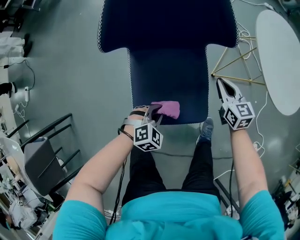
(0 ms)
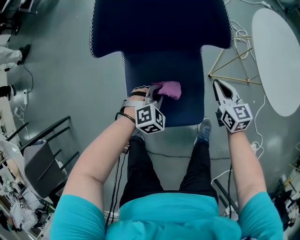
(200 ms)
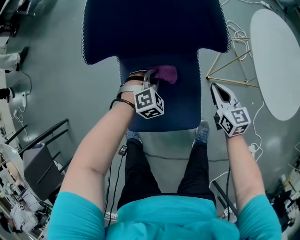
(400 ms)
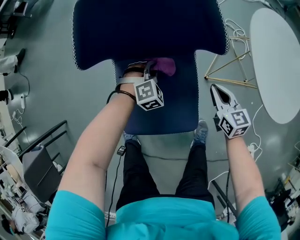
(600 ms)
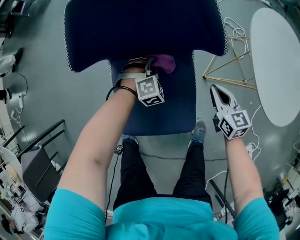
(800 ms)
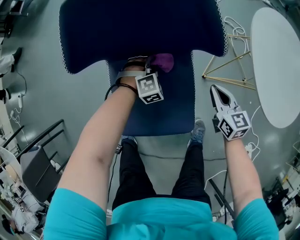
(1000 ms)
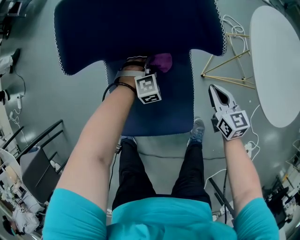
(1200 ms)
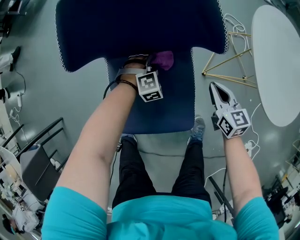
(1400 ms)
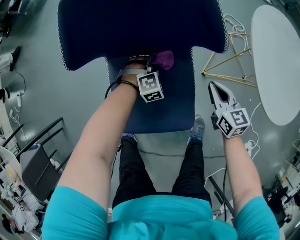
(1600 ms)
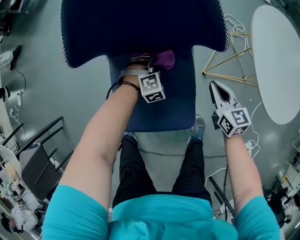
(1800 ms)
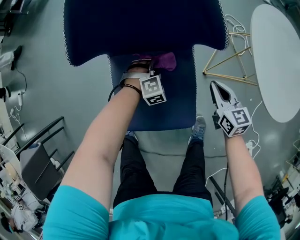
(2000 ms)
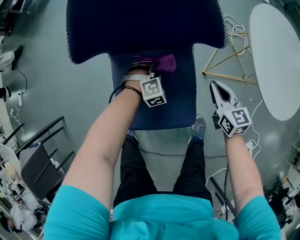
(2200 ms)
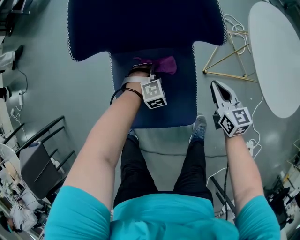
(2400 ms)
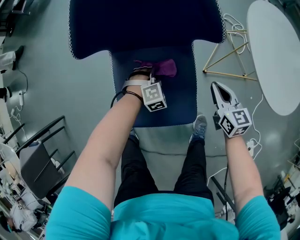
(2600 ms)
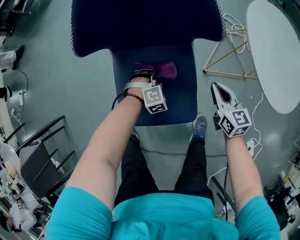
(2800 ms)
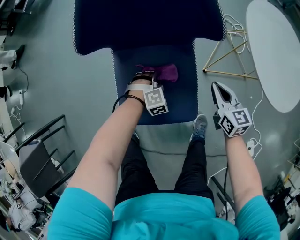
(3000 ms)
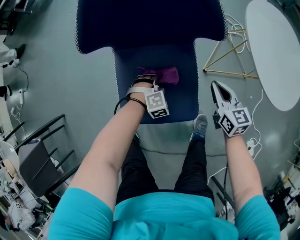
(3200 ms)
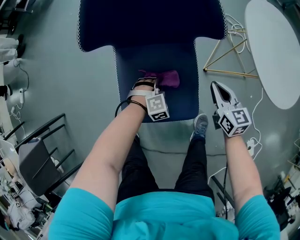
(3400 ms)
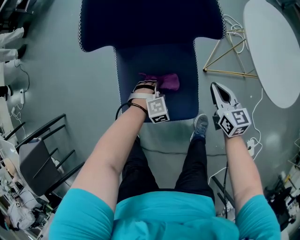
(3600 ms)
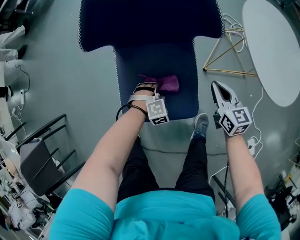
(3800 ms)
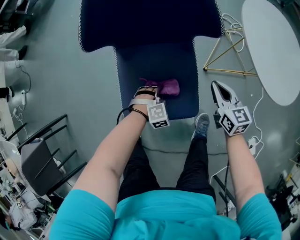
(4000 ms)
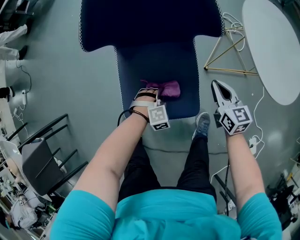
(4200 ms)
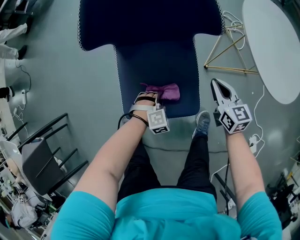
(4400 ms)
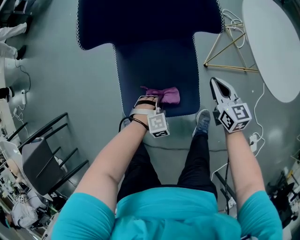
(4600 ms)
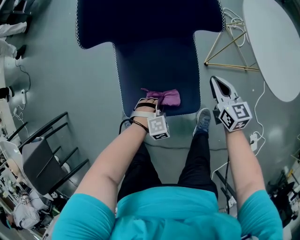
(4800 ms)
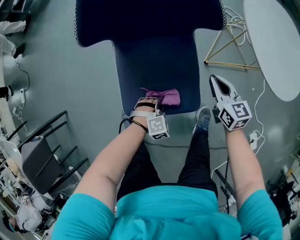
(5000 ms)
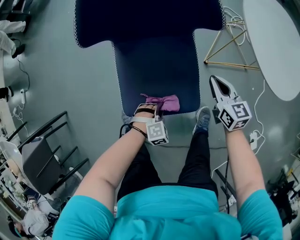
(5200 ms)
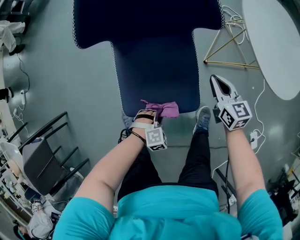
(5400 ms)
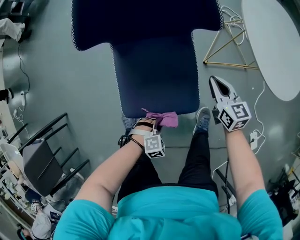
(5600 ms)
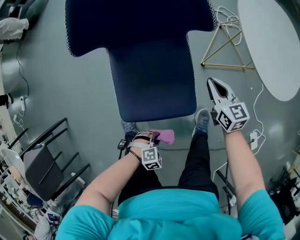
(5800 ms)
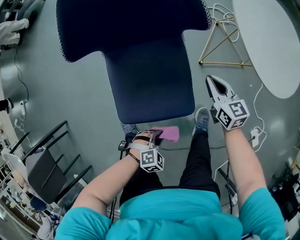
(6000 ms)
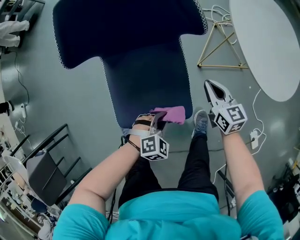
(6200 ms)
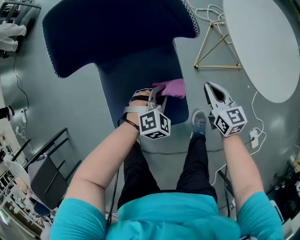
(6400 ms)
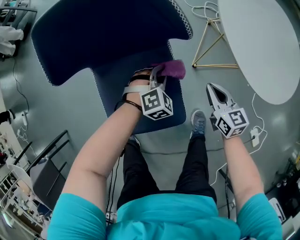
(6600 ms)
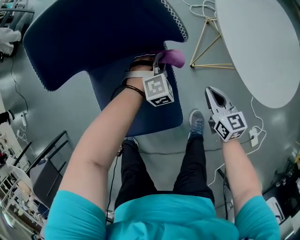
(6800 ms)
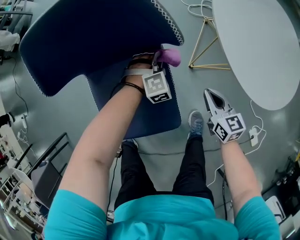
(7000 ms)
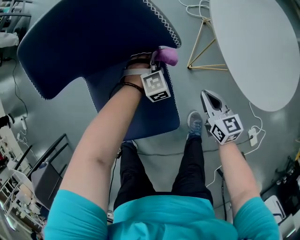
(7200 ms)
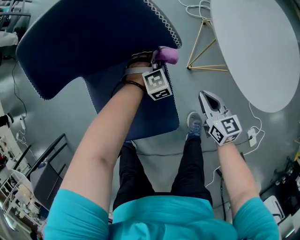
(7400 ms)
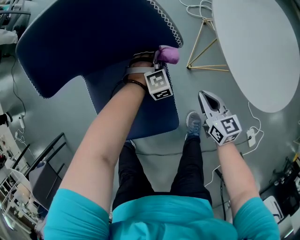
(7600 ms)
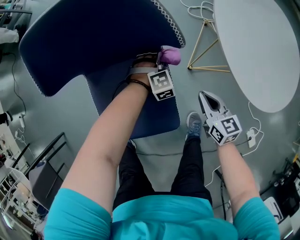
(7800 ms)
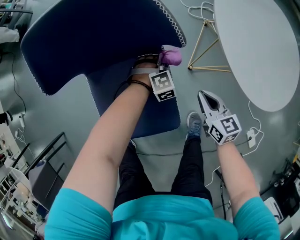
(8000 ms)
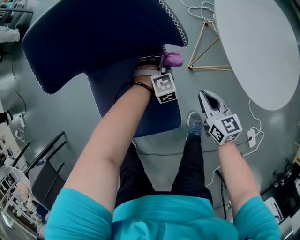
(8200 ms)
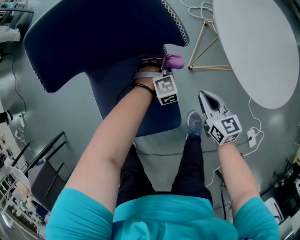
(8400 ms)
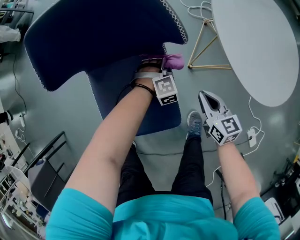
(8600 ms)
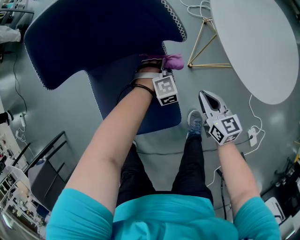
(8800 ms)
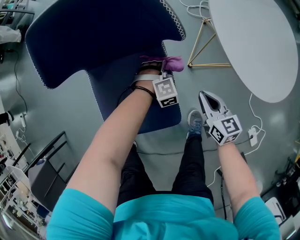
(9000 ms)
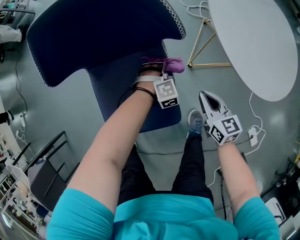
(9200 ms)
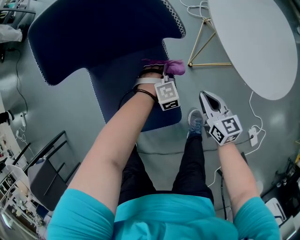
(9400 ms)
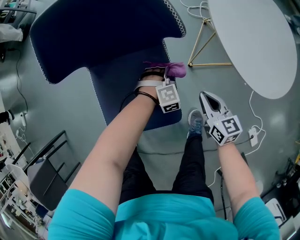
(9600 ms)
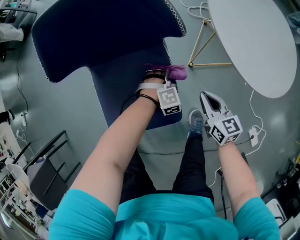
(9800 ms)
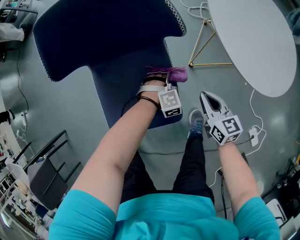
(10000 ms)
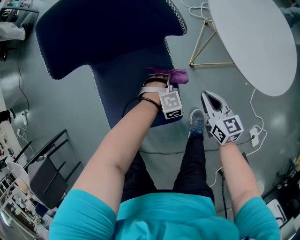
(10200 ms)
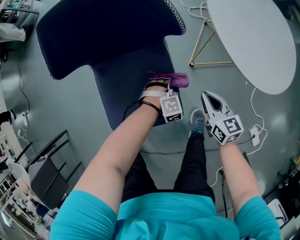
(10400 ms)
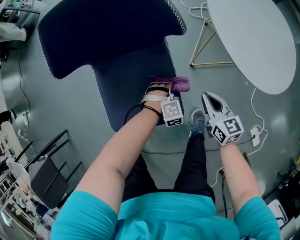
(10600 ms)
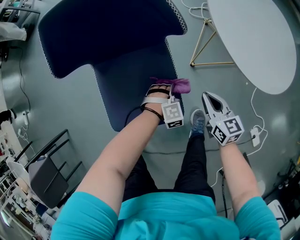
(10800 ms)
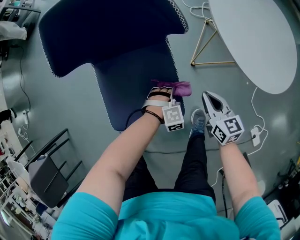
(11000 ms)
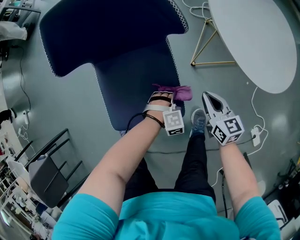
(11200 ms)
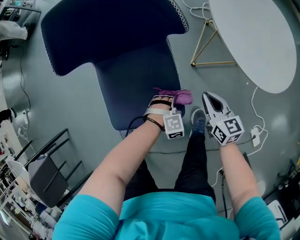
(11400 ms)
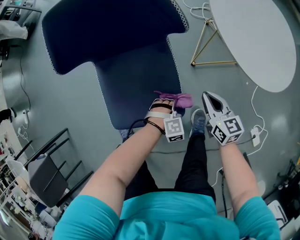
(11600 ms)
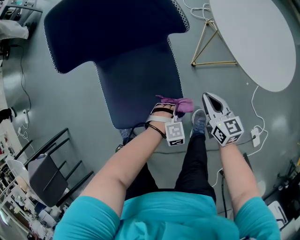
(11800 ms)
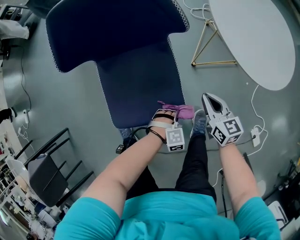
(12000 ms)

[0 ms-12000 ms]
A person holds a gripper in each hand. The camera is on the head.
0 ms to 1600 ms: The left gripper heads forward, covering about 25 cm, and changes its angle by roughly 20 degrees.
1600 ms to 3000 ms: The right gripper changes place by about 5 cm. Meanwhile the left gripper moves backward, some 10 cm.
3000 ms to 4400 ms: The left gripper heads backward, covering some 10 cm.
4400 ms to 6000 ms: The left gripper changes place by approximately 15 cm, and rotates approximately 20 degrees.
6000 ms to 7600 ms: The left gripper changes place by roughly 40 cm, and swivels about 30 degrees. The right gripper ends up some 5 cm from where it was.
7600 ms to 9000 ms: The left gripper shifts approximately 5 cm backward.
9000 ms to 10400 ms: The left gripper travels backward by approximately 10 cm.
10400 ms to 12000 ms: The left gripper moves backward, roughly 15 cm.

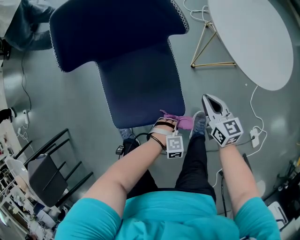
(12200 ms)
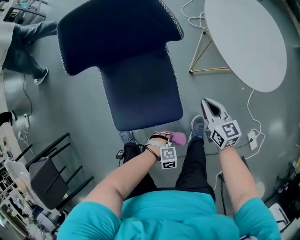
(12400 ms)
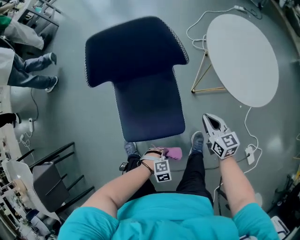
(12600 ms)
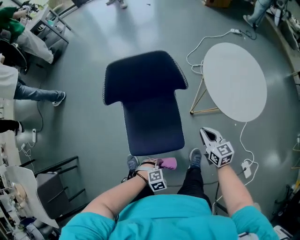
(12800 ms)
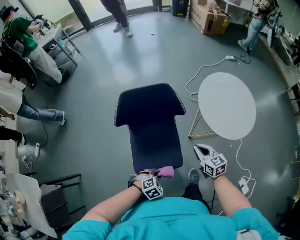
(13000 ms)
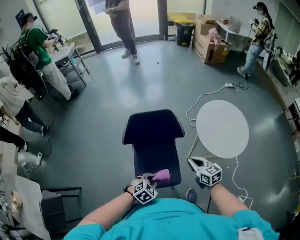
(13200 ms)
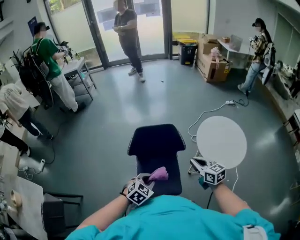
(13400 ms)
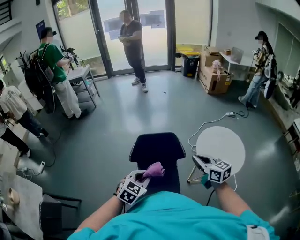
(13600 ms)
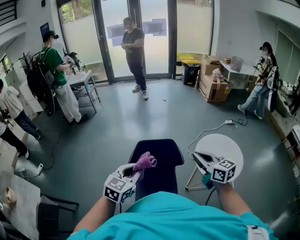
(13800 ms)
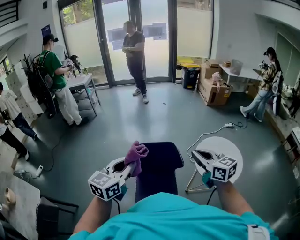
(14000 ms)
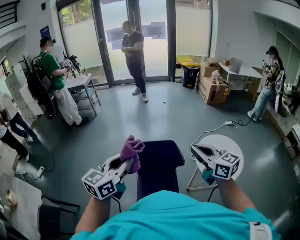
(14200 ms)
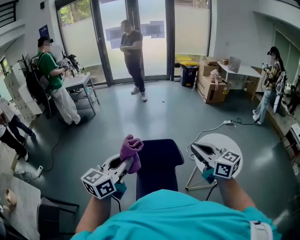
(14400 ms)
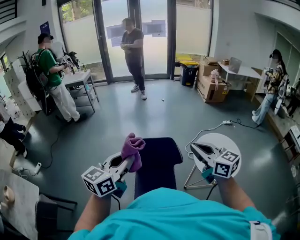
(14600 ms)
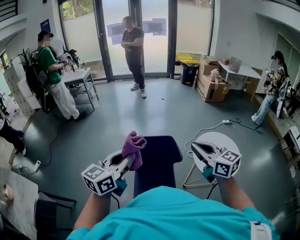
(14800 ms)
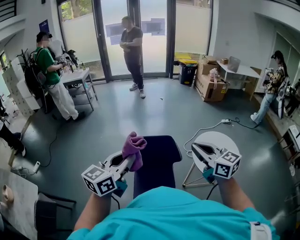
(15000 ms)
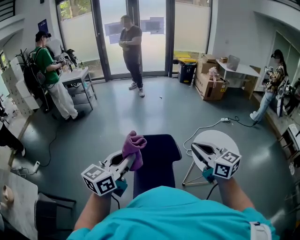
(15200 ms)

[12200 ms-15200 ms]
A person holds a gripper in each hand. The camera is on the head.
12200 ms to 13800 ms: The grippers both shift upward by approximately 60 cm. The left gripper tips its fingers upward by roughly 50 degrees. The right gripper rotates approximately 30 degrees.
13800 ms to 15200 ms: The two grippers go about 10 cm upward. The left gripper changes its angle by roughly 30 degrees.

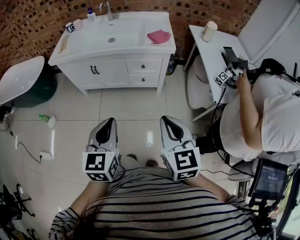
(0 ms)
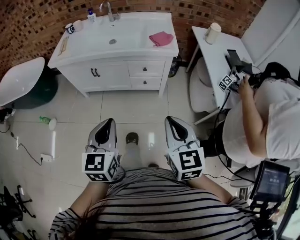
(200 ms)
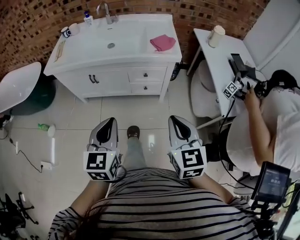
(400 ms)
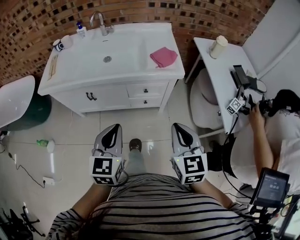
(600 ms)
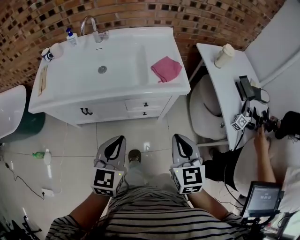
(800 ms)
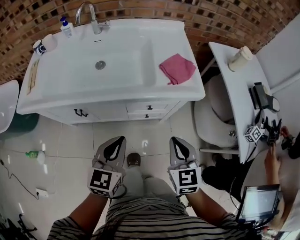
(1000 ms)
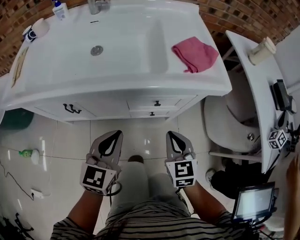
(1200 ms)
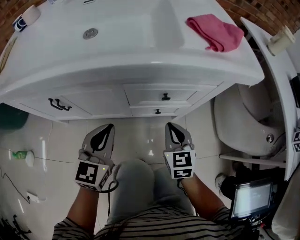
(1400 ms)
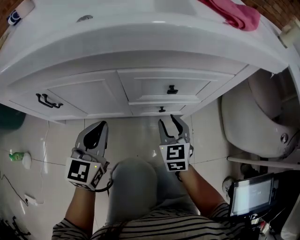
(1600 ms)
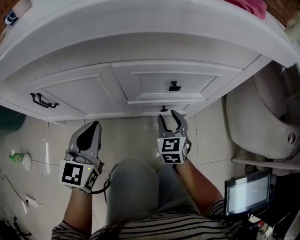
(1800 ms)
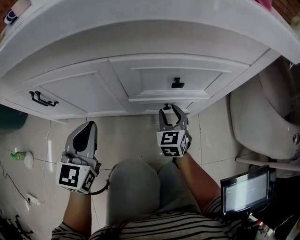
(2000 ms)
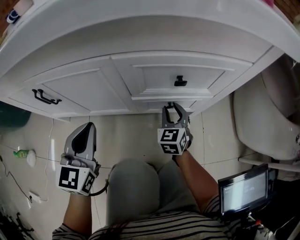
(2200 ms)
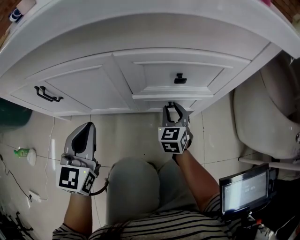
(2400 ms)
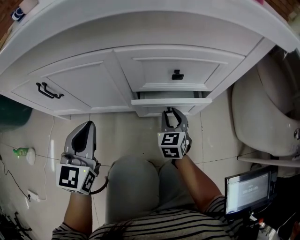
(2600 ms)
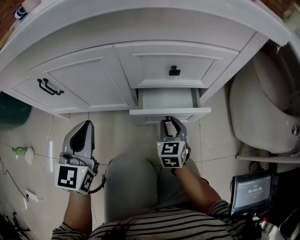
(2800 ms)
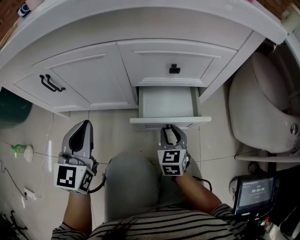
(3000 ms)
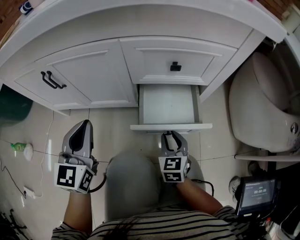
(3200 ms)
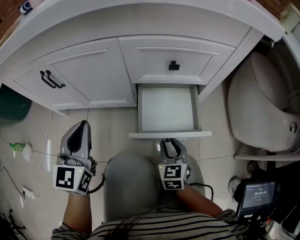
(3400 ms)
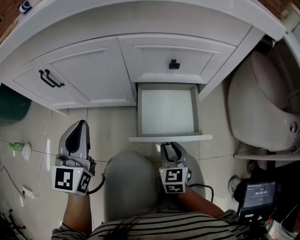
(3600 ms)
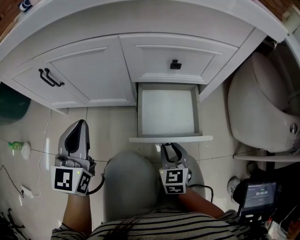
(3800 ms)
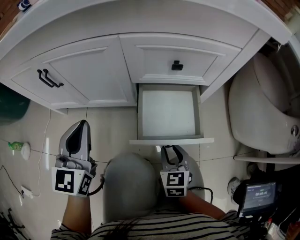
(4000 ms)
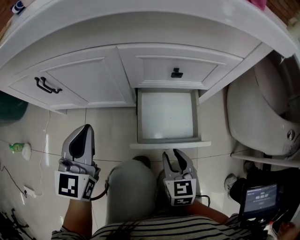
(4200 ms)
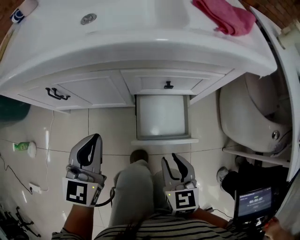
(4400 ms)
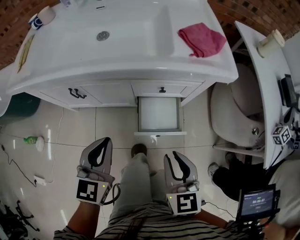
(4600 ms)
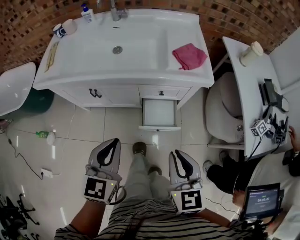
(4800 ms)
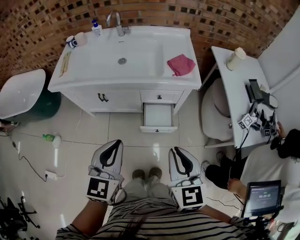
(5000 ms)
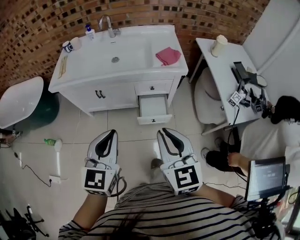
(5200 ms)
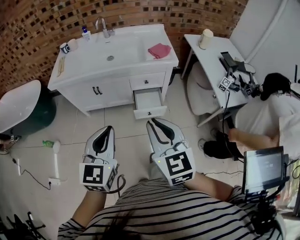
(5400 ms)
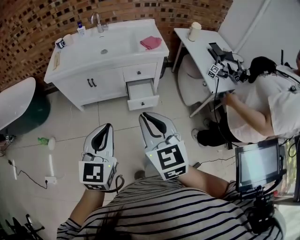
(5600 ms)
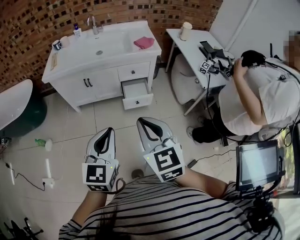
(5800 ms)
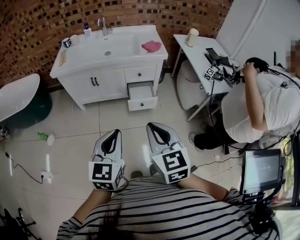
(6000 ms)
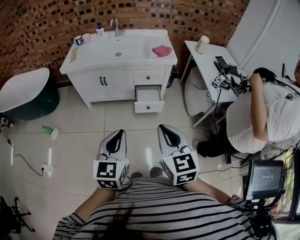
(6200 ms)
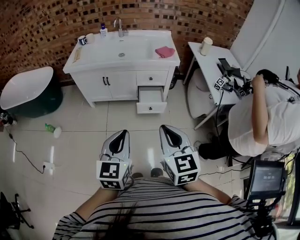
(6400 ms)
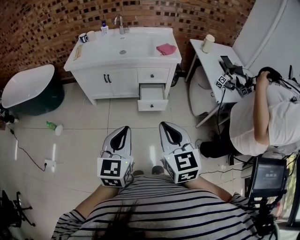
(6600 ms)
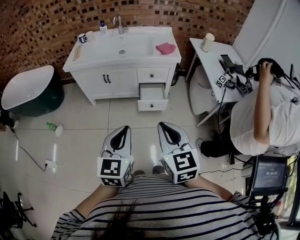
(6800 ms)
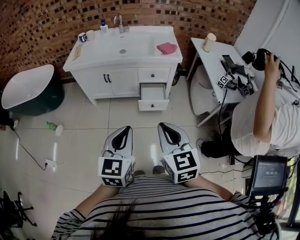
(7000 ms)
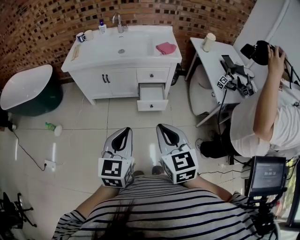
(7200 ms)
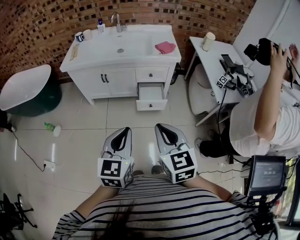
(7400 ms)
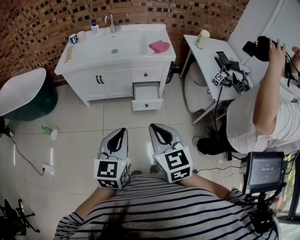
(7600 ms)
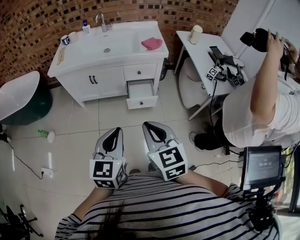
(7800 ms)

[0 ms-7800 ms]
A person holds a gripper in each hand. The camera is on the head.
0 ms to 1600 ms: The pair of grippers is taken forward, approximately 50 cm. The two grippers go roughly 50 cm downward. The right gripper opens up.
1600 ms to 3200 ms: The left gripper travels backward by roughly 5 cm. Meanwhile the right gripper moves backward and downward, approximately 15 cm.
3200 ms to 4600 ms: The left gripper is displaced upward by some 20 cm. The right gripper moves upward, approximately 40 cm.
4600 ms to 6200 ms: The two grippers travel together, backward, about 40 cm. Both grippers move upward, approximately 30 cm. The right gripper closes up.
6200 ms to 7800 ms: The left gripper changes place by roughly 5 cm, while the right gripper moves about 5 cm.

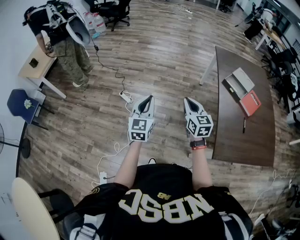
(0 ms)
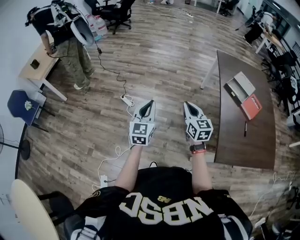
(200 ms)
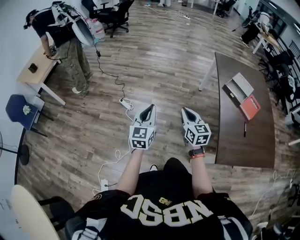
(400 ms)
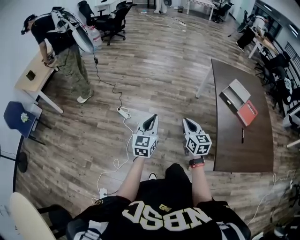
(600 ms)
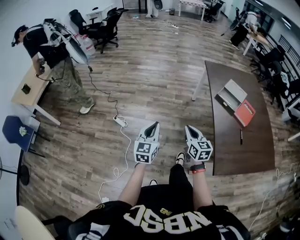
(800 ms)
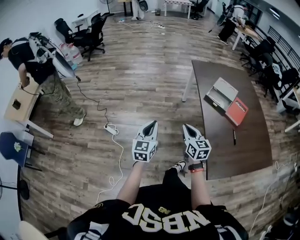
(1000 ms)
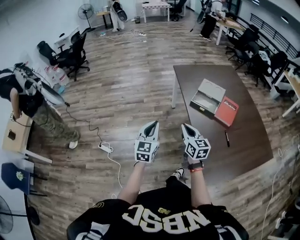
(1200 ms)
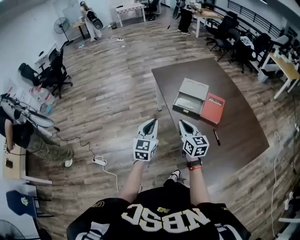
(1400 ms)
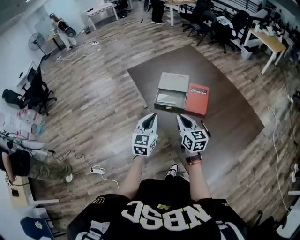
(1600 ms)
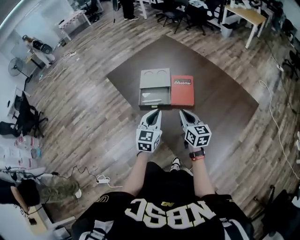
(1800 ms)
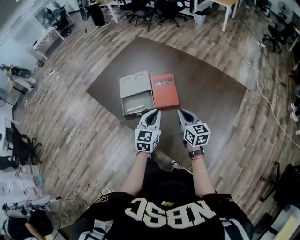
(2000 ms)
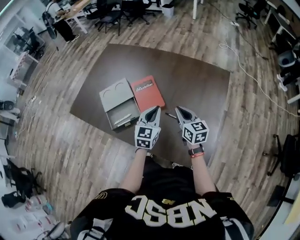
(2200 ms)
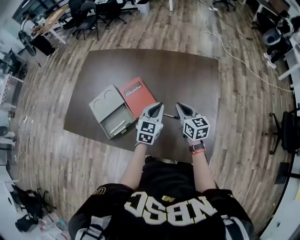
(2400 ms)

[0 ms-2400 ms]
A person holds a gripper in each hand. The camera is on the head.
0 ms to 1200 ms: The grippers both shift to the right and forward by approximately 25 cm. The right gripper swivels some 20 degrees, while the left gripper swivels approximately 20 degrees.
1200 ms to 2400 ms: The pair of grippers is taken approximately 50 cm. The left gripper swivels some 80 degrees; the right gripper changes its angle by approximately 60 degrees.
